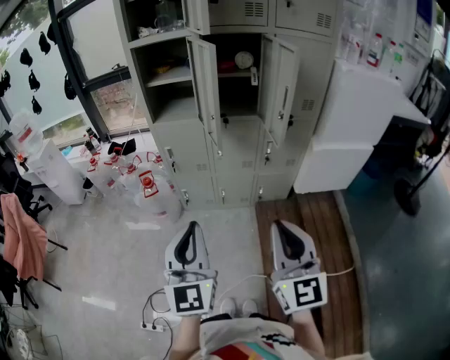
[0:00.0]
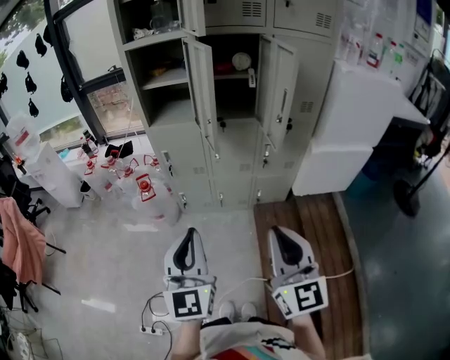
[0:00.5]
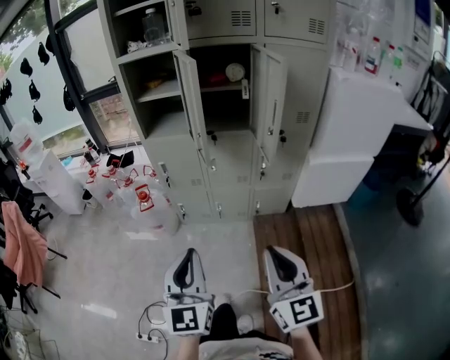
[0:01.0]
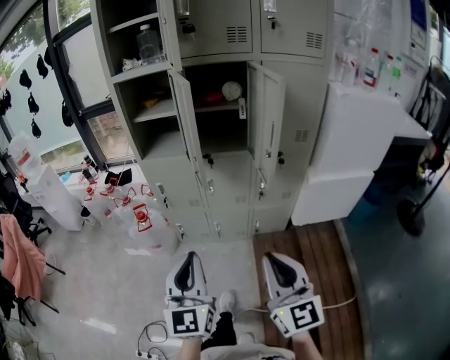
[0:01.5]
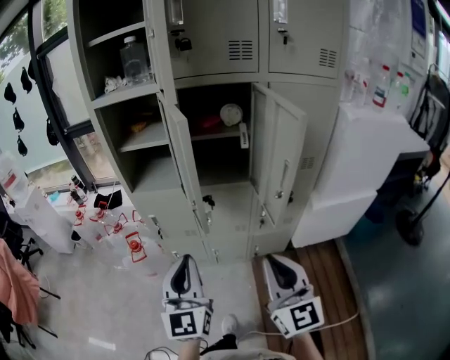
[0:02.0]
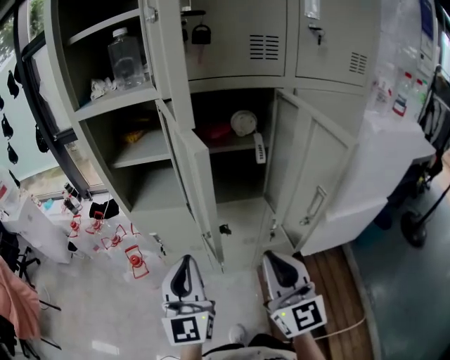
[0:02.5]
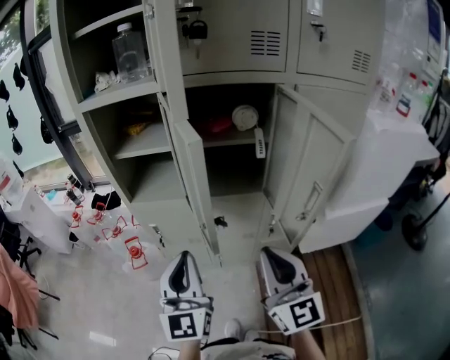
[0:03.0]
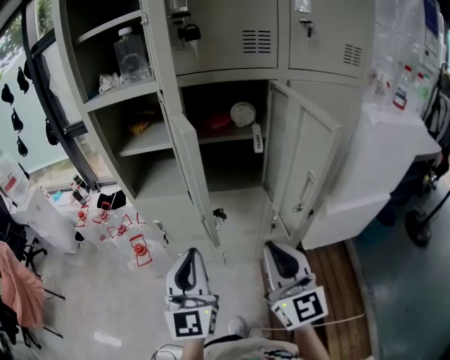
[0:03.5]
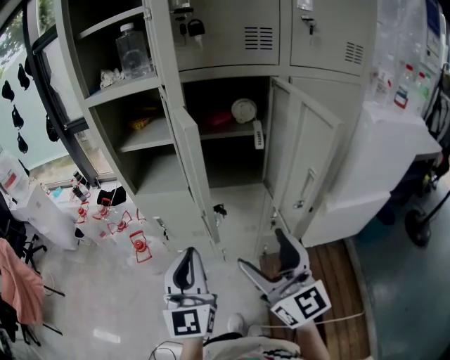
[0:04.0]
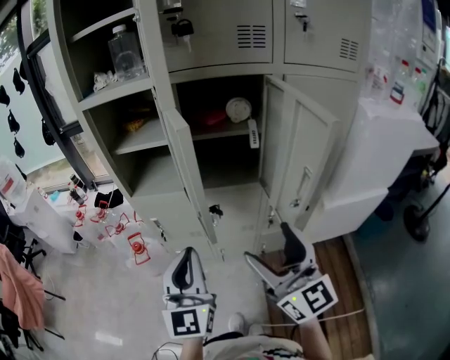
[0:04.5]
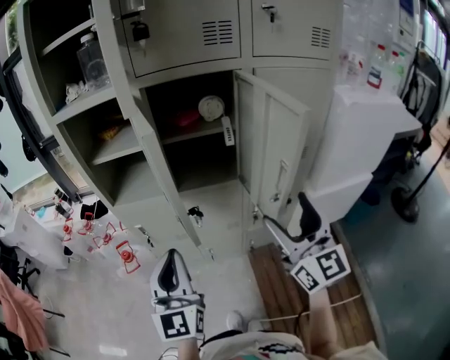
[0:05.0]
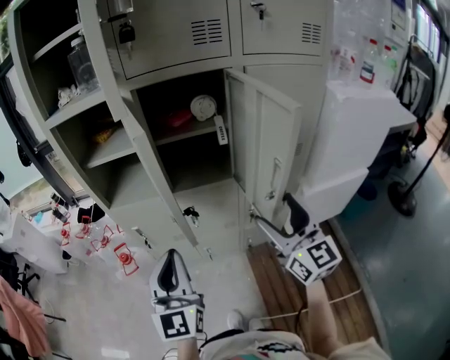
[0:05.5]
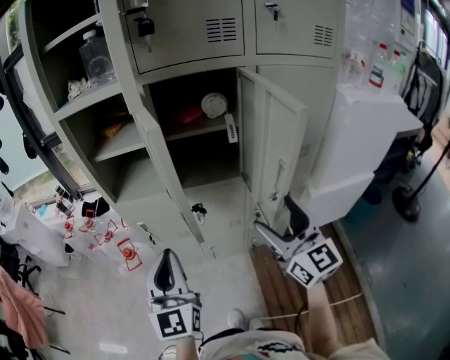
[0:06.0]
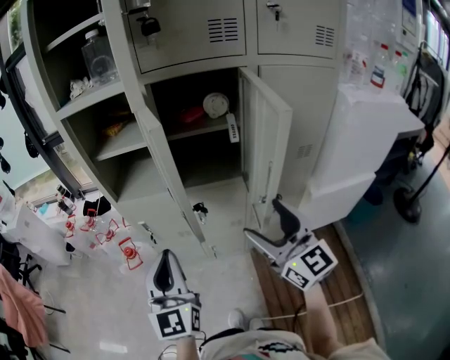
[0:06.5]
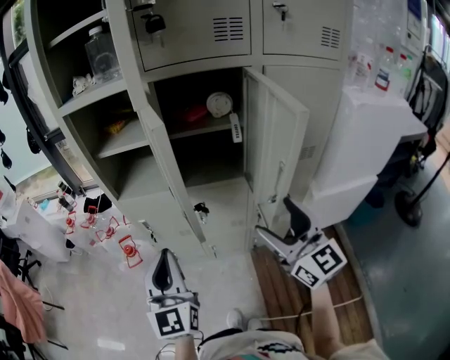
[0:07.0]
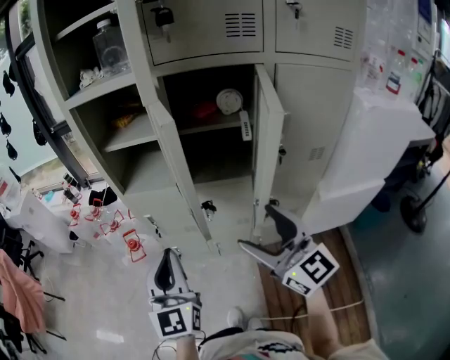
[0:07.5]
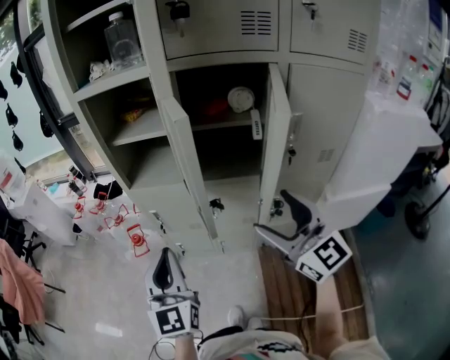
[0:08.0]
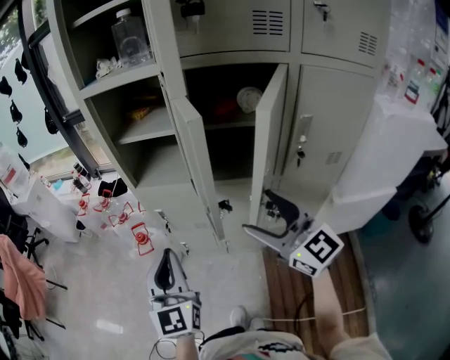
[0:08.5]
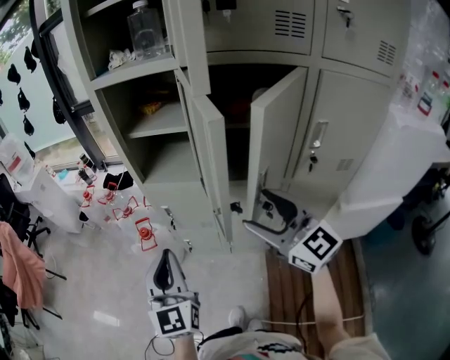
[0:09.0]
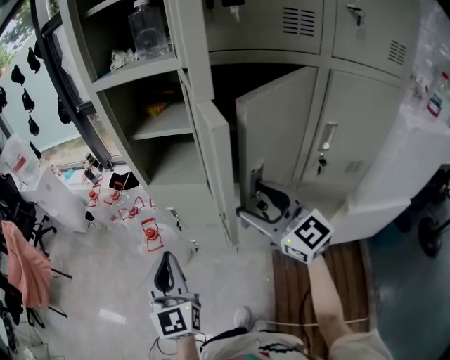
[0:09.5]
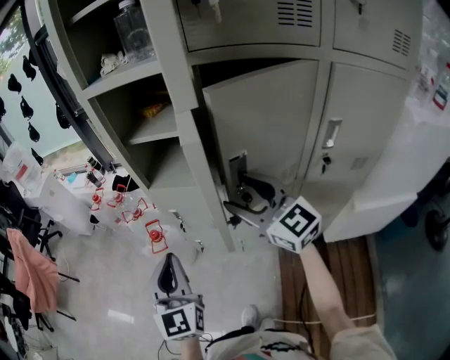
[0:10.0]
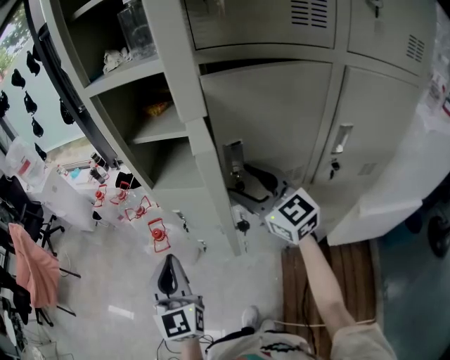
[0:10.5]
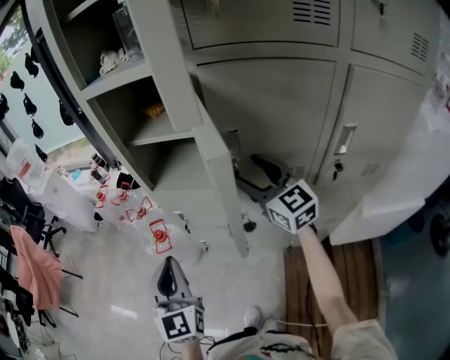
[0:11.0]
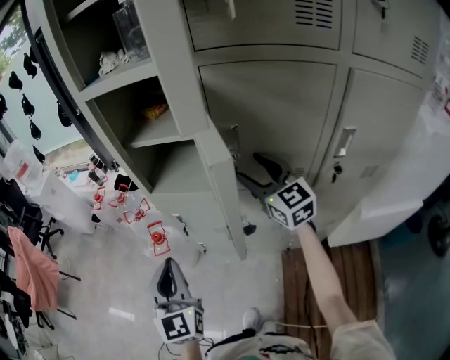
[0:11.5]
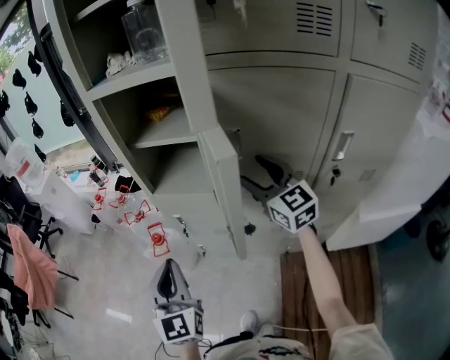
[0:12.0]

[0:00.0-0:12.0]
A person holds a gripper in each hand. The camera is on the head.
0:00.0 to 0:02.0: Both grippers travel together forward, roughly 20 cm.
0:02.0 to 0:04.0: The grippers both shift forward by about 10 cm. The right gripper opens its fingers.
0:04.0 to 0:06.0: The right gripper goes about 10 cm to the right and forward.
0:06.0 to 0:08.0: The right gripper heads to the left, covering approximately 5 cm.
0:08.0 to 0:10.0: The left gripper travels forward by some 5 cm. The right gripper is displaced forward and to the left by about 20 cm.
0:10.0 to 0:12.0: The right gripper shifts approximately 10 cm forward and to the right.

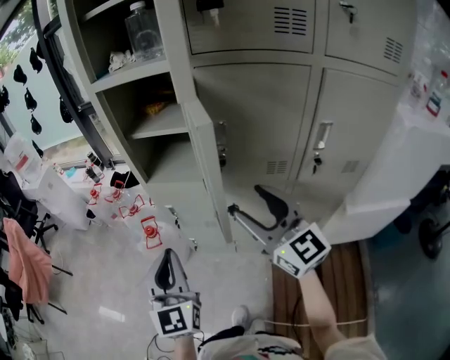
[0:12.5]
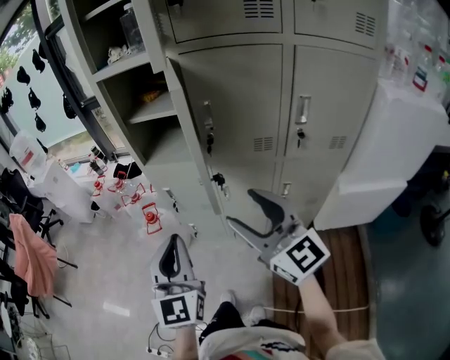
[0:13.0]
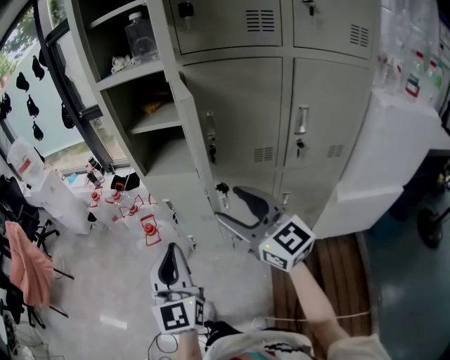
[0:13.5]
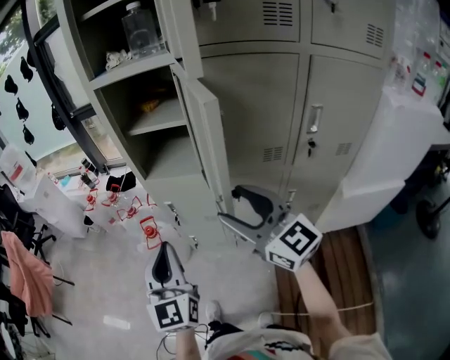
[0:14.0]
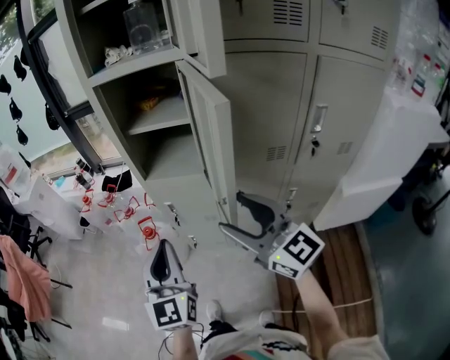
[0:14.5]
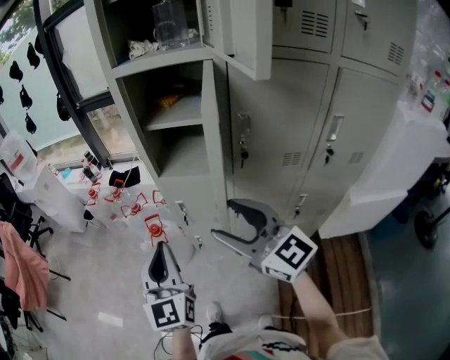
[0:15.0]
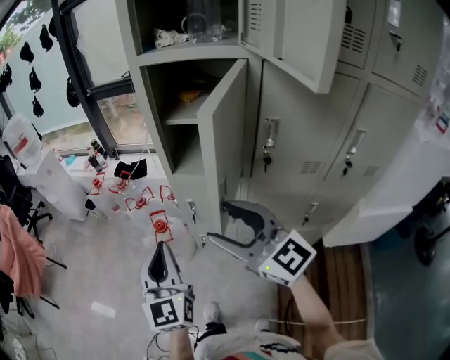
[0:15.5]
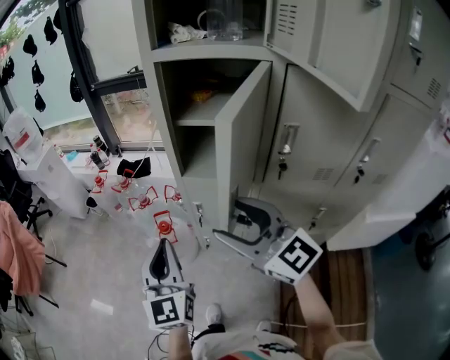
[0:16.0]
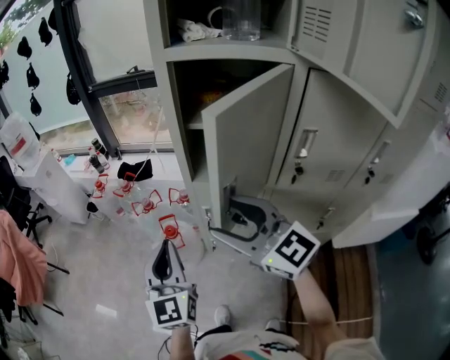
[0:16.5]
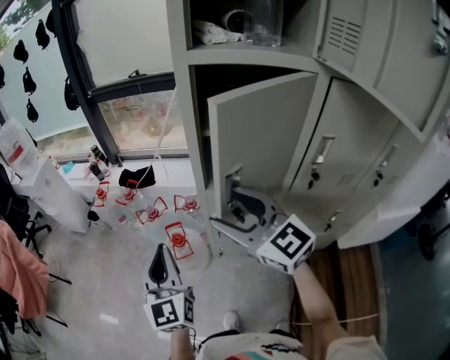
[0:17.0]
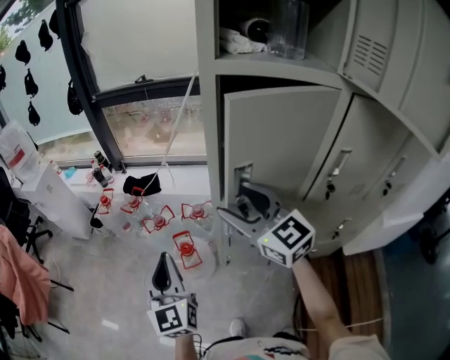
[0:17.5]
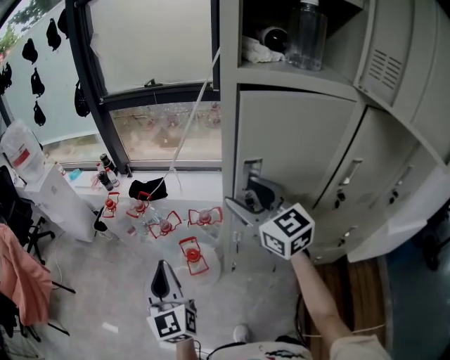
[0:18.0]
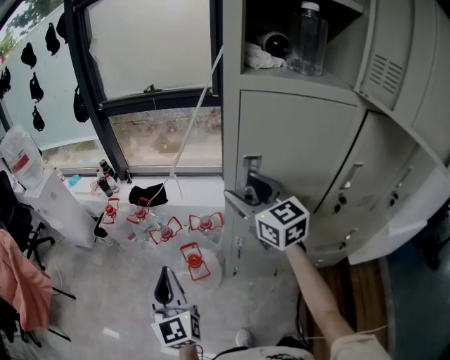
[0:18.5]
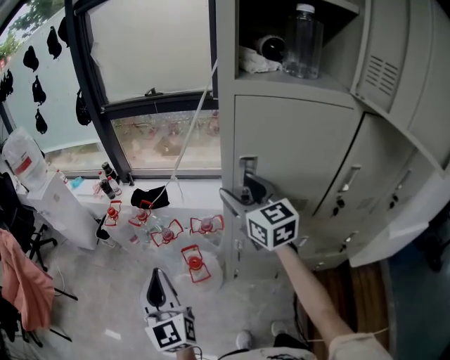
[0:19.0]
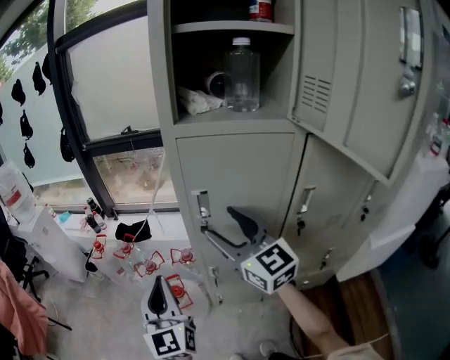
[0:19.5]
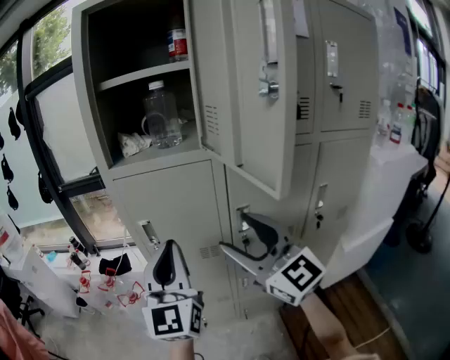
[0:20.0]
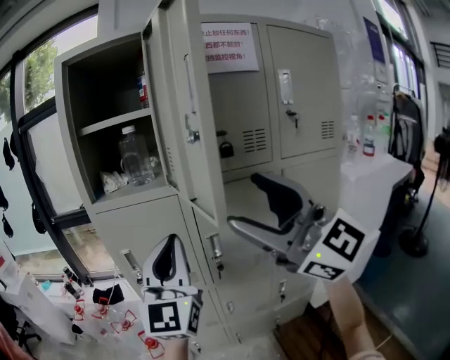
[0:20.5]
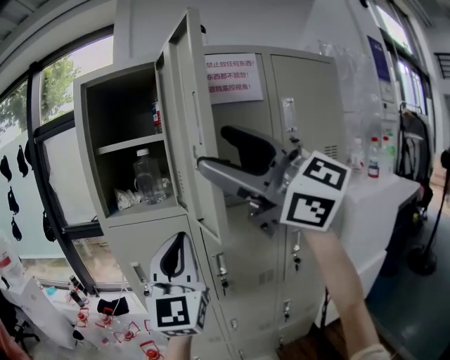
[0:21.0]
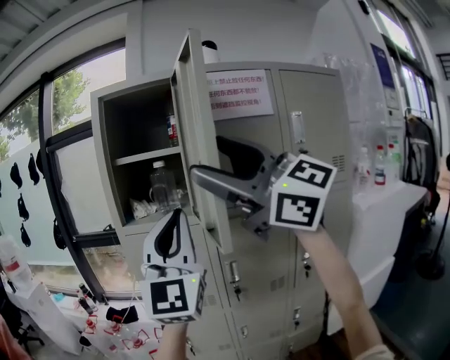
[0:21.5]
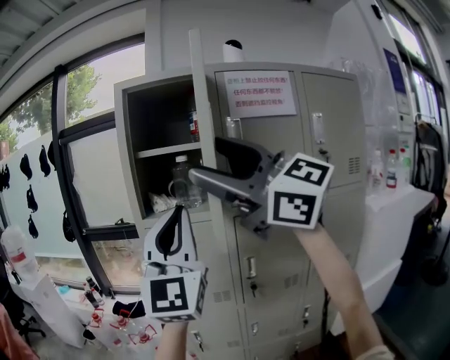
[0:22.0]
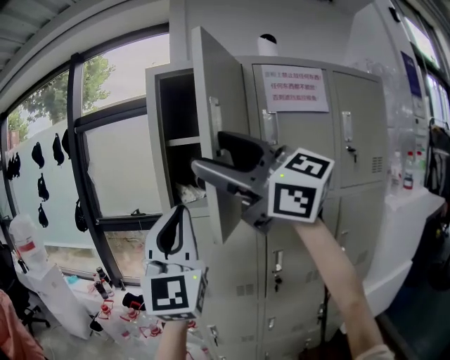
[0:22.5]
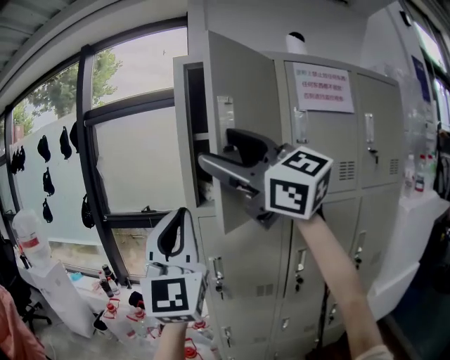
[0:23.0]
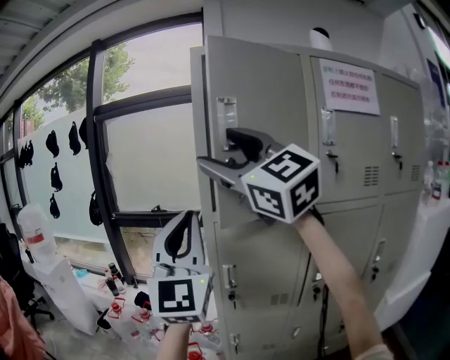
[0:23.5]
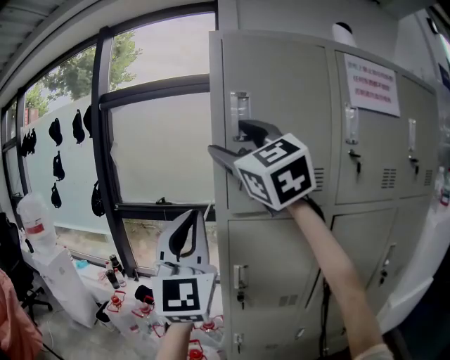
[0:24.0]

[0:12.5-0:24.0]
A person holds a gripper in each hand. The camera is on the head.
0:12.5 to 0:14.5: The right gripper travels to the left by roughly 10 cm, and travels backward and back again, approximately 10 cm each way; the left gripper moves about 10 cm backward and comes back.
0:14.5 to 0:16.5: Both grippers move forward and to the left, roughly 20 cm.
0:16.5 to 0:18.5: The left gripper travels to the left and forward by roughly 15 cm, while the right gripper is displaced forward by approximately 20 cm, and turns by approximately 20 degrees.
0:18.5 to 0:20.0: The right gripper moves backward, to the right and upward, roughly 35 cm, and swivels about 20 degrees. Meanwhile the left gripper shifts roughly 40 cm to the right and upward, and rotates some 30 degrees.
0:20.0 to 0:22.0: The grippers both shift upward by roughly 25 cm. The right gripper changes its angle by approximately 30 degrees. The left gripper swivels roughly 20 degrees.
0:22.0 to 0:24.0: Both grippers move forward and to the left, roughly 30 cm. The right gripper rotates some 30 degrees.

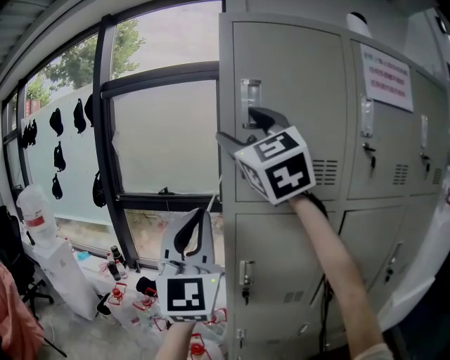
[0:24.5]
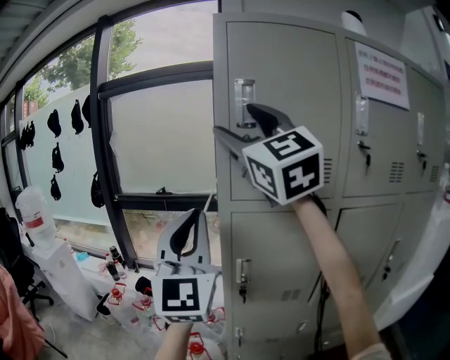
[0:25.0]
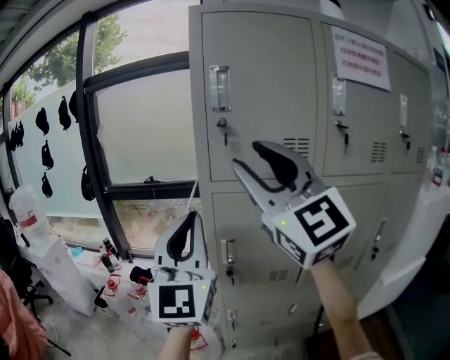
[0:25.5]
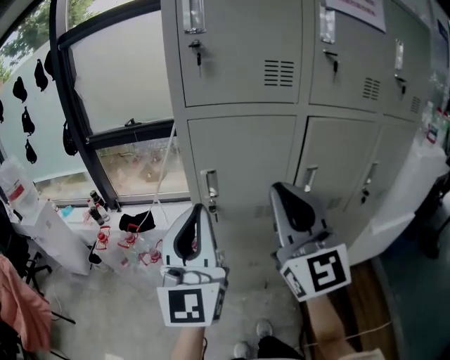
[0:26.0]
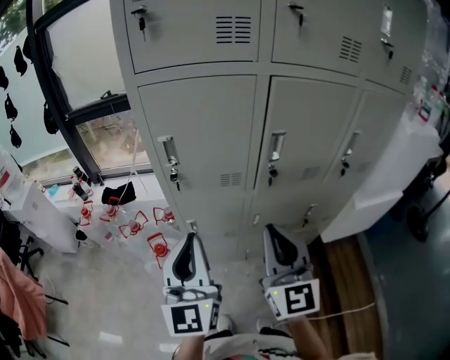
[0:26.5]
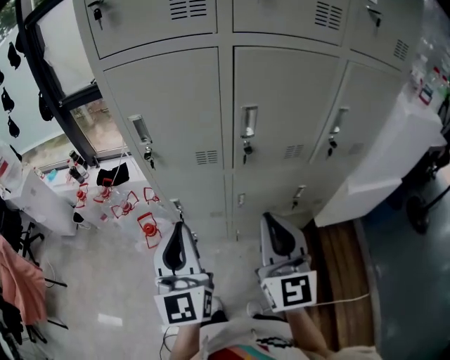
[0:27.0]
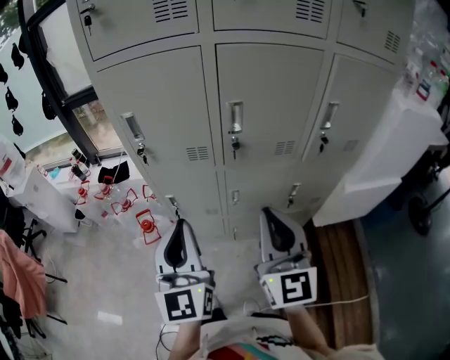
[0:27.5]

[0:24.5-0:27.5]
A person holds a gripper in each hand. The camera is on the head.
0:24.5 to 0:26.0: The right gripper shifts roughly 35 cm downward, backward and to the right, changes its angle by some 20 degrees, and closes its fingers. Meanwhile the left gripper moves downward, backward and to the right, some 20 cm.
0:26.0 to 0:27.5: The left gripper goes roughly 25 cm downward, to the right and backward. The right gripper heads to the right, downward and backward, covering some 30 cm.
